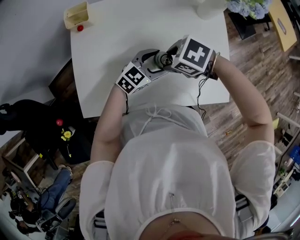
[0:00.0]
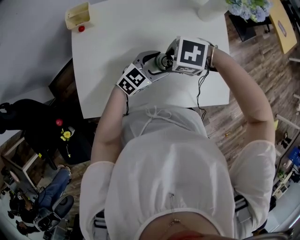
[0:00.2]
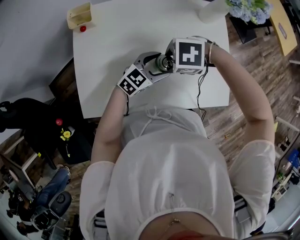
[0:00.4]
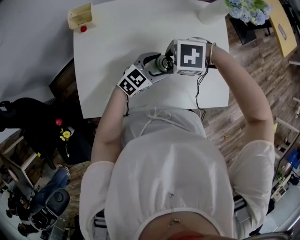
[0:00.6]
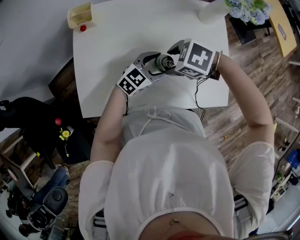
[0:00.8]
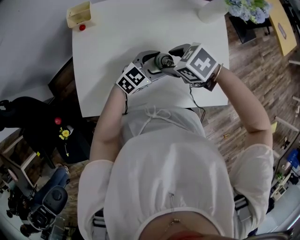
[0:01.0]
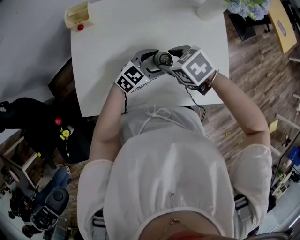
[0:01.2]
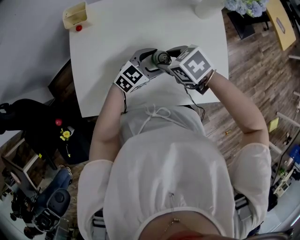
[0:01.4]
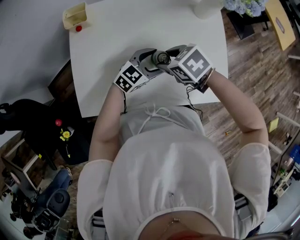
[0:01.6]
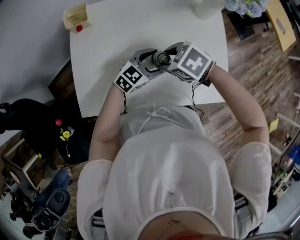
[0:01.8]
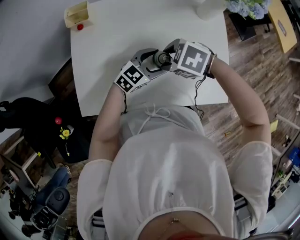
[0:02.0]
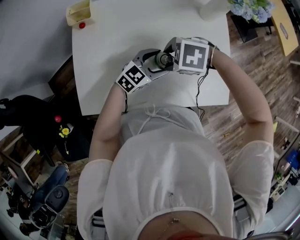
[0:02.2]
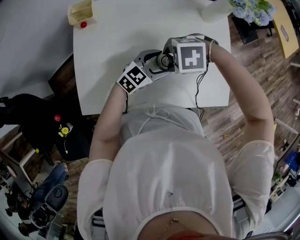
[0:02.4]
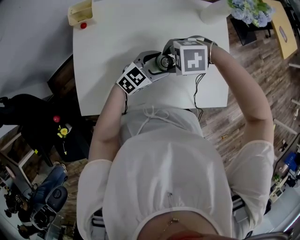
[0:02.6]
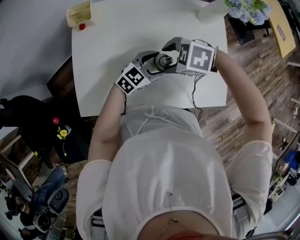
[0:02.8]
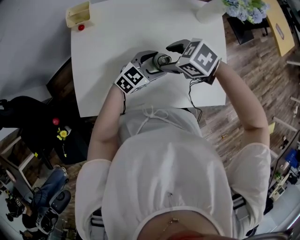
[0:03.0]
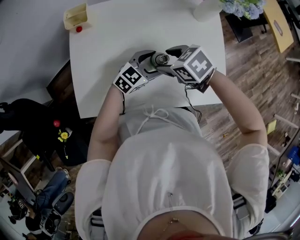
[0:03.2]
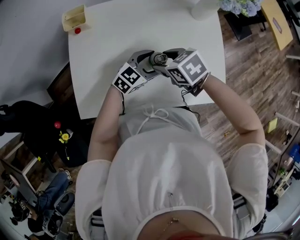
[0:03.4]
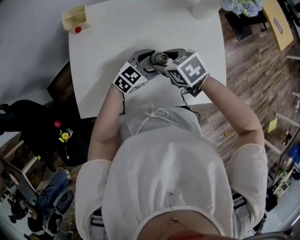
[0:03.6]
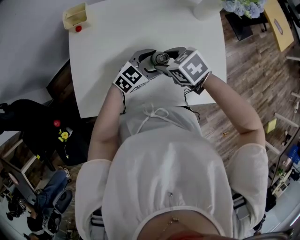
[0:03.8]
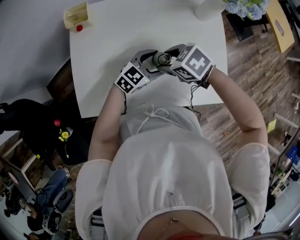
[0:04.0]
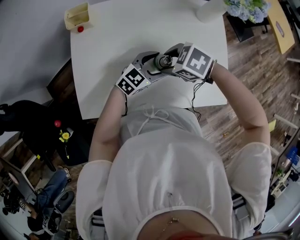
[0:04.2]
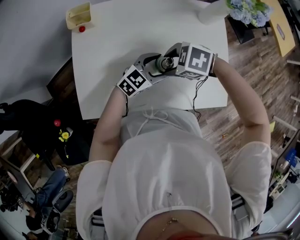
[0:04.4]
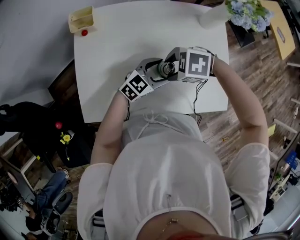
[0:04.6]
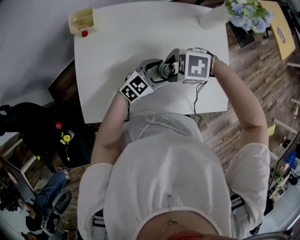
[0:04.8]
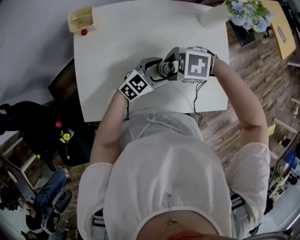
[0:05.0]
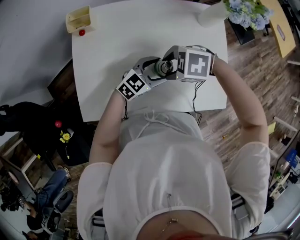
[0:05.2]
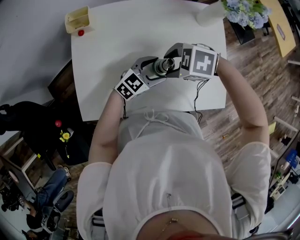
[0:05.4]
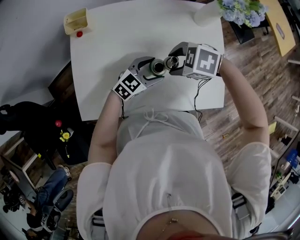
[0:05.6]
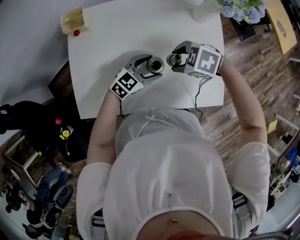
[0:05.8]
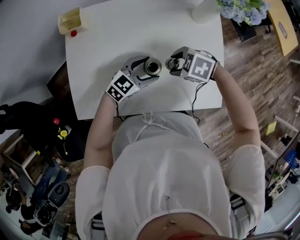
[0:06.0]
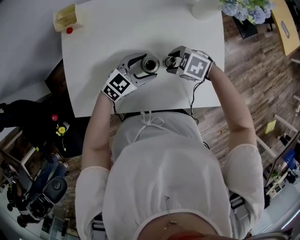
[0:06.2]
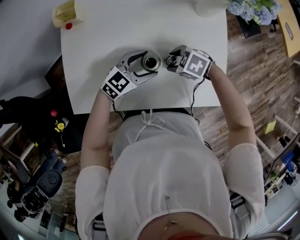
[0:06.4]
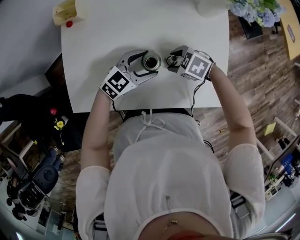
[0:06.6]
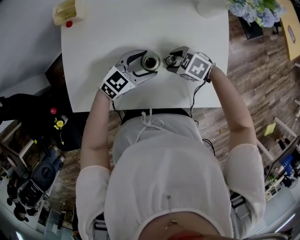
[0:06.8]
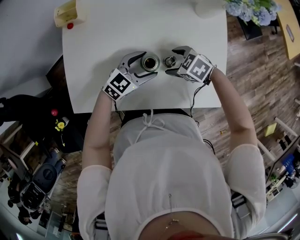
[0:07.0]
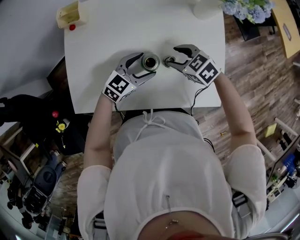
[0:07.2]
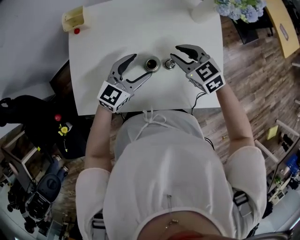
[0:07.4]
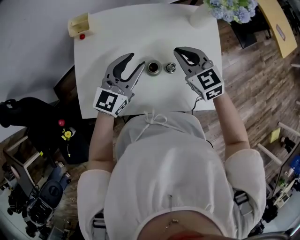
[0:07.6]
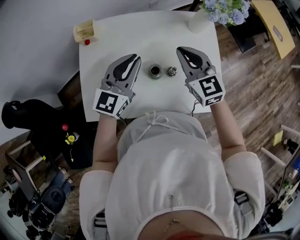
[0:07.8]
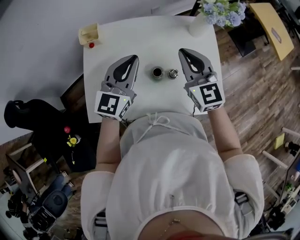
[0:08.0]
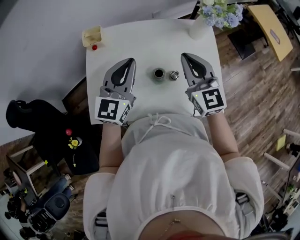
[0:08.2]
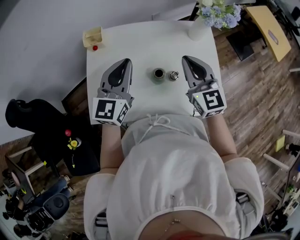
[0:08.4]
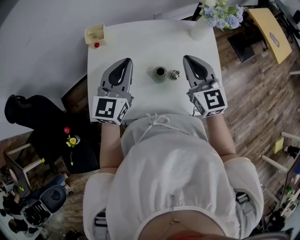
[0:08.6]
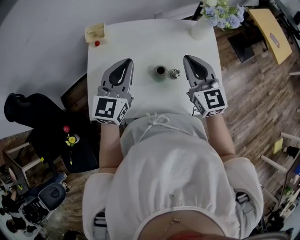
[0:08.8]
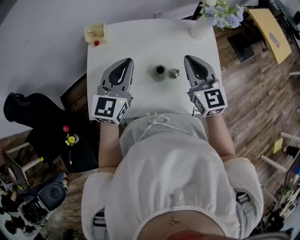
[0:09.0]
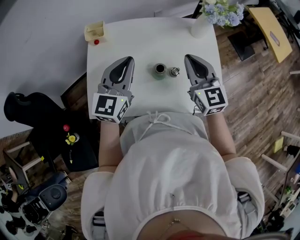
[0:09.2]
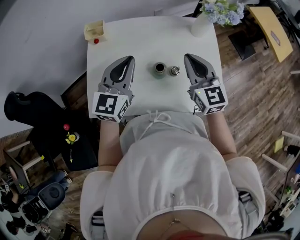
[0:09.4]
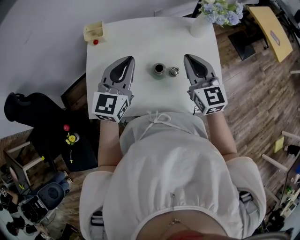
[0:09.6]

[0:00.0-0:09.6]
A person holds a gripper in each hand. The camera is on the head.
0:00.0 to 0:01.6: The right gripper rotates roughly 20 degrees.
0:03.2 to 0:04.8: The right gripper rotates roughly 40 degrees.
0:04.8 to 0:06.4: The right gripper moves downward, some 10 cm.
0:06.4 to 0:08.0: Both grippers travel together upward, roughly 25 cm. The right gripper tips its fingers upward by roughly 60 degrees, and closes, while the left gripper turns by approximately 40 degrees, and closes its fingers.
0:08.0 to 0:09.6: There are only small adjustments of the grippers.

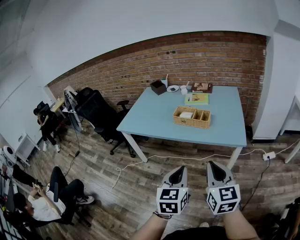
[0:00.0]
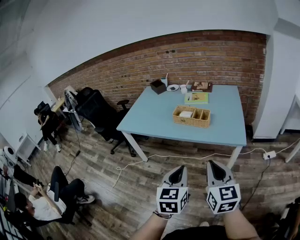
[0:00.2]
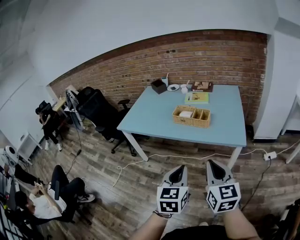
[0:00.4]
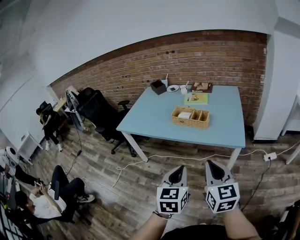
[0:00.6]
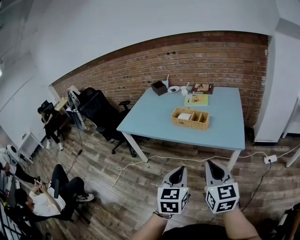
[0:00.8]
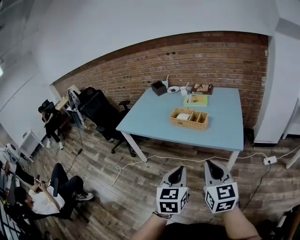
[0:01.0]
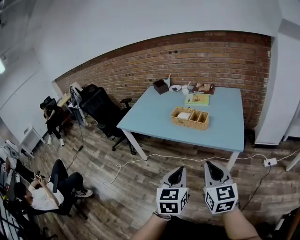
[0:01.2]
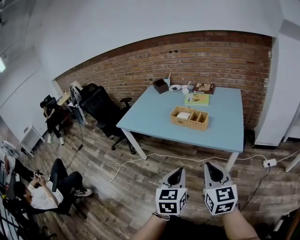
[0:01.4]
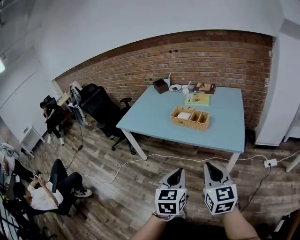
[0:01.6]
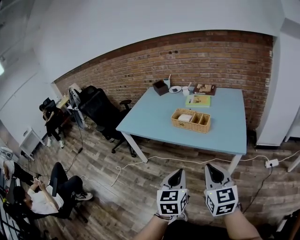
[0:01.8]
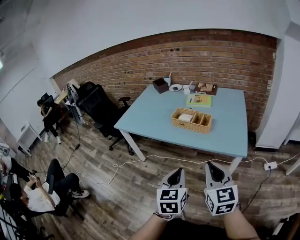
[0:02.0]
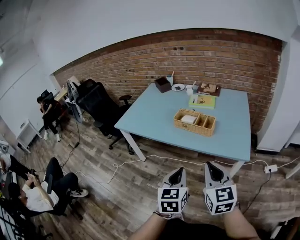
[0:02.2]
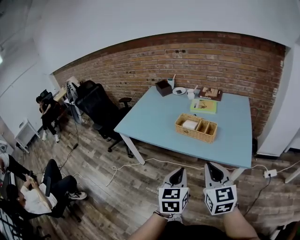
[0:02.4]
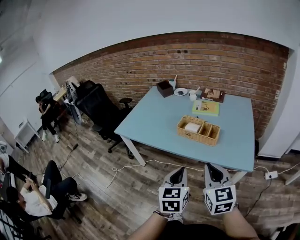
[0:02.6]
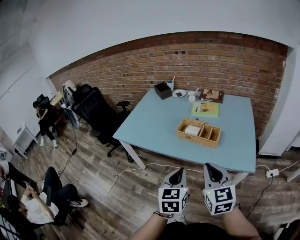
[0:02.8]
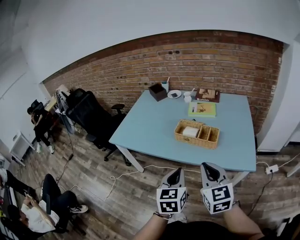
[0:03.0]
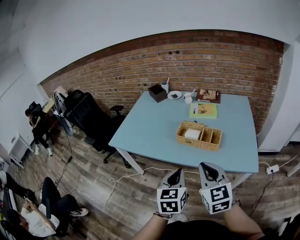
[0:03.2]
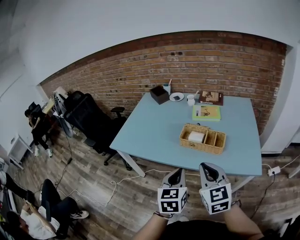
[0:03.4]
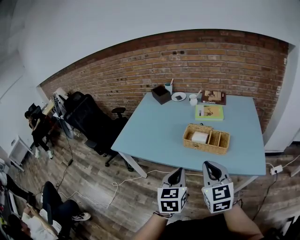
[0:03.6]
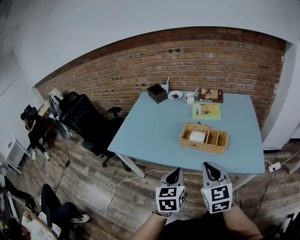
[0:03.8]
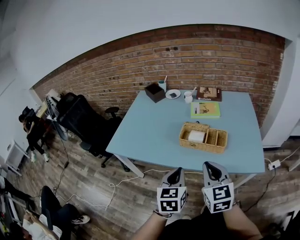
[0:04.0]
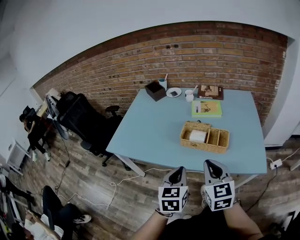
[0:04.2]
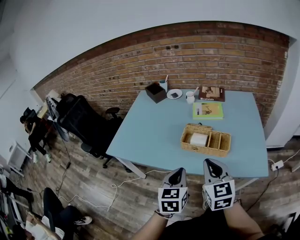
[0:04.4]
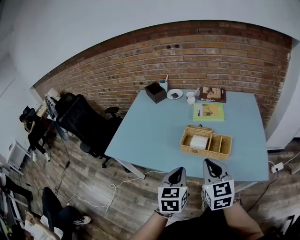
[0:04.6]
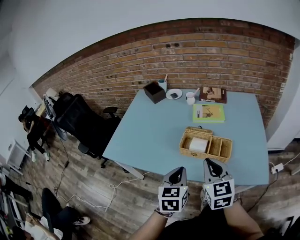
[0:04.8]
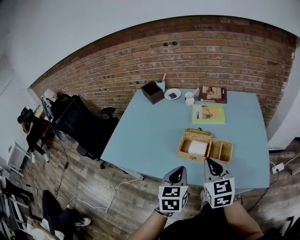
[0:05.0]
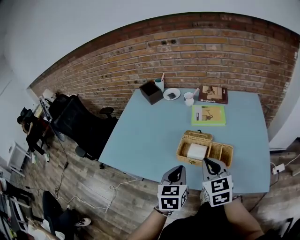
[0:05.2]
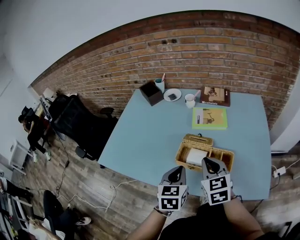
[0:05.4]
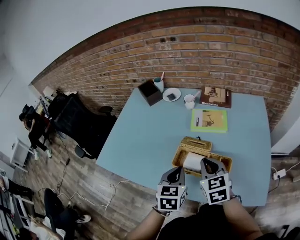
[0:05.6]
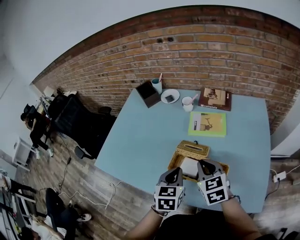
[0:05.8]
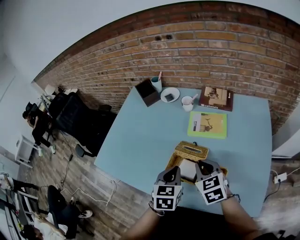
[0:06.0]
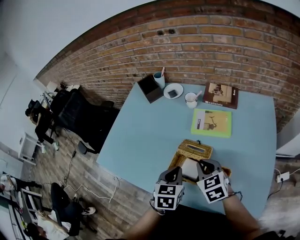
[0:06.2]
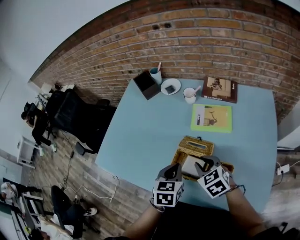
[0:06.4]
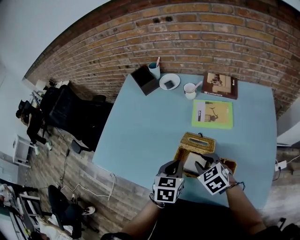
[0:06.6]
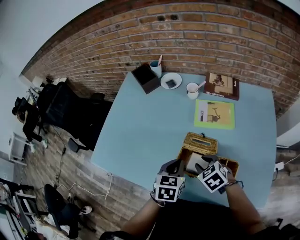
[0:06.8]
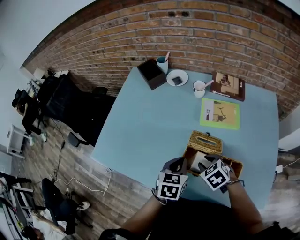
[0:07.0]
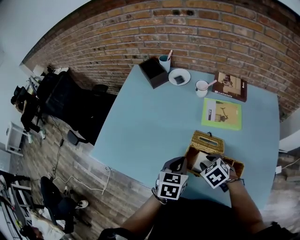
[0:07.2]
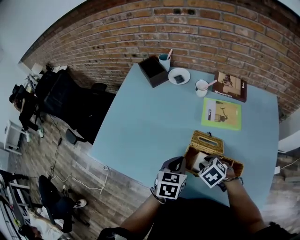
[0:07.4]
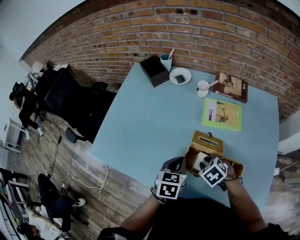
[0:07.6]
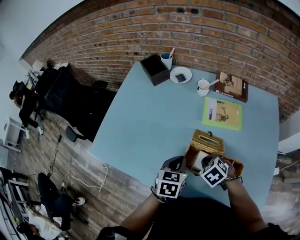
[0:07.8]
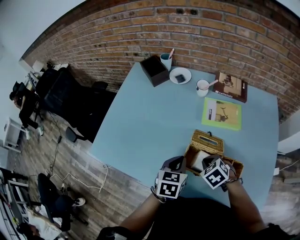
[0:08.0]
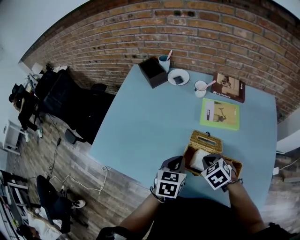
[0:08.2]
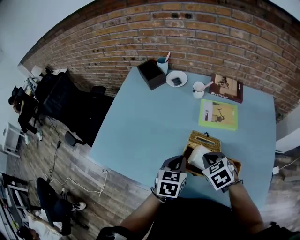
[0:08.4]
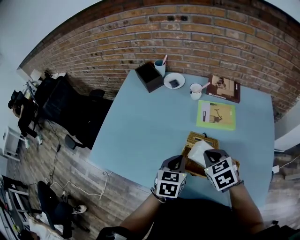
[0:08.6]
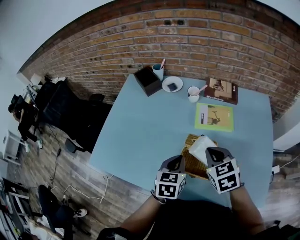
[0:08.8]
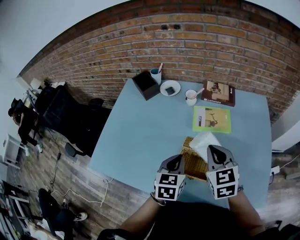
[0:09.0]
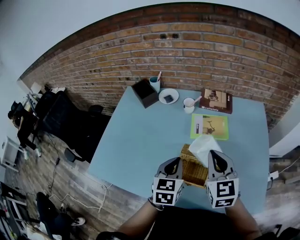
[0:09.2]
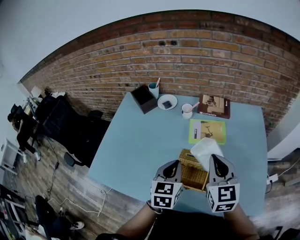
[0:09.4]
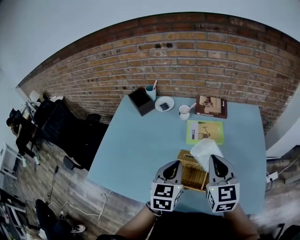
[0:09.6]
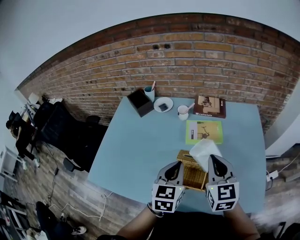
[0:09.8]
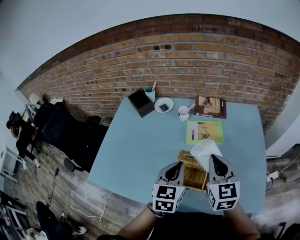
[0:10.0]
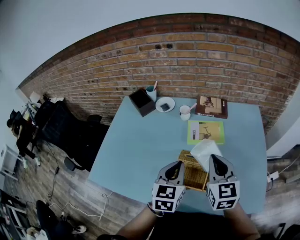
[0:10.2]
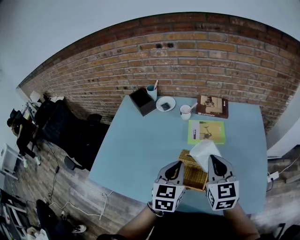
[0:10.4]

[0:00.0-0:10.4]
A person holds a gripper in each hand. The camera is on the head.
0:00.0 to 0:01.4: Both grippers travel together to the right, about 5 cm.
0:01.4 to 0:03.0: The right gripper goes roughly 25 cm forward and to the left; the left gripper is displaced forward by approximately 20 cm.
0:03.0 to 0:04.4: The right gripper shifts about 15 cm forward; the left gripper travels forward and to the left by roughly 15 cm.
0:04.4 to 0:06.0: The grippers both shift forward by roughly 25 cm. The right gripper rotates roughly 20 degrees.
0:06.0 to 0:07.4: The left gripper shifts roughly 10 cm downward, to the left and forward, while the right gripper goes approximately 15 cm downward and to the left, tilts its fingers roughly 40 degrees downward, and opens its fingers.
0:07.4 to 0:09.0: The right gripper is displaced upward by some 20 cm, tilts its fingers about 40 degrees upward, and closes its fingers; the left gripper goes some 5 cm upward.
0:09.0 to 0:10.4: The left gripper is displaced upward by some 5 cm, while the right gripper moves roughly 5 cm.

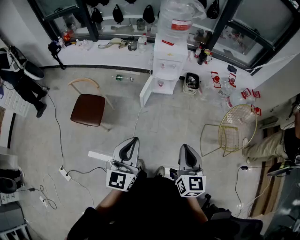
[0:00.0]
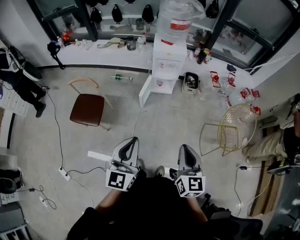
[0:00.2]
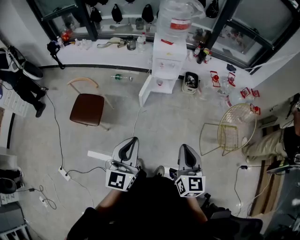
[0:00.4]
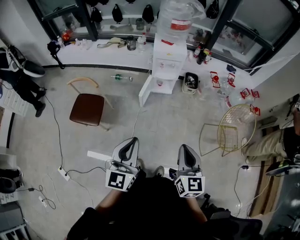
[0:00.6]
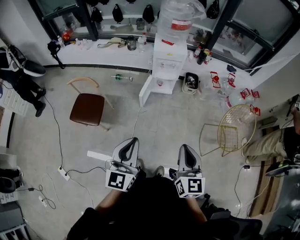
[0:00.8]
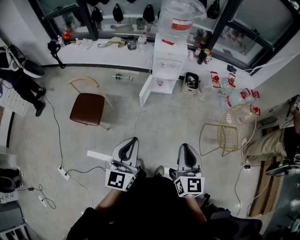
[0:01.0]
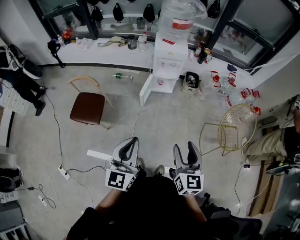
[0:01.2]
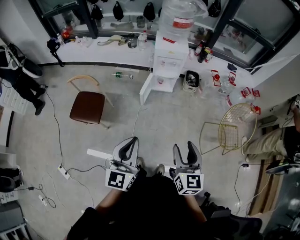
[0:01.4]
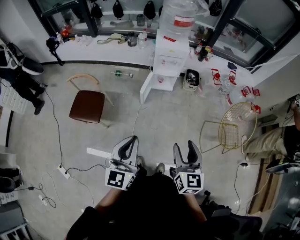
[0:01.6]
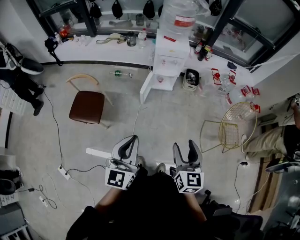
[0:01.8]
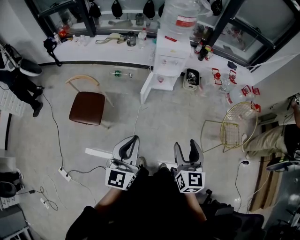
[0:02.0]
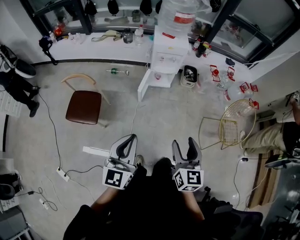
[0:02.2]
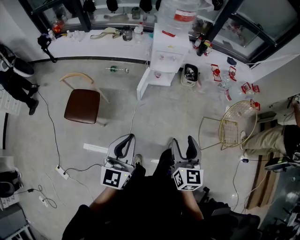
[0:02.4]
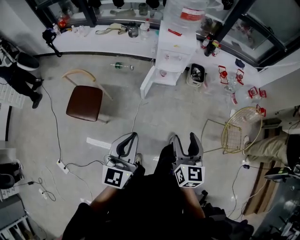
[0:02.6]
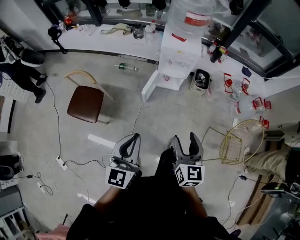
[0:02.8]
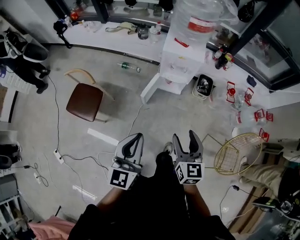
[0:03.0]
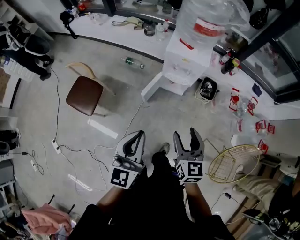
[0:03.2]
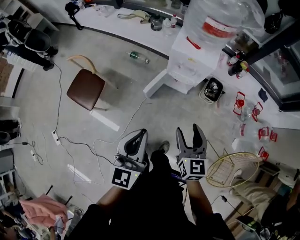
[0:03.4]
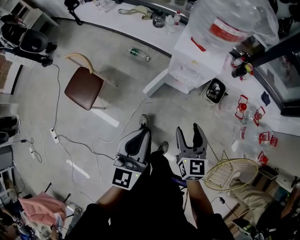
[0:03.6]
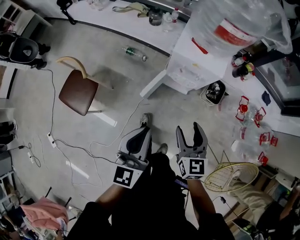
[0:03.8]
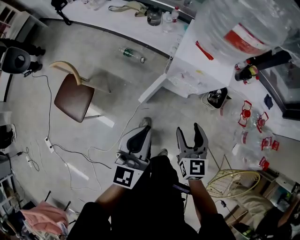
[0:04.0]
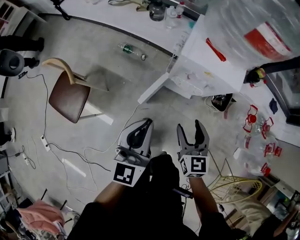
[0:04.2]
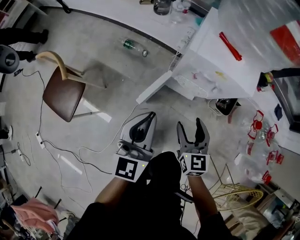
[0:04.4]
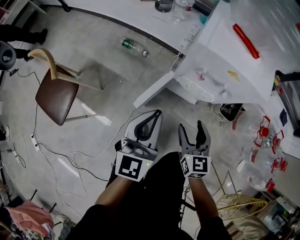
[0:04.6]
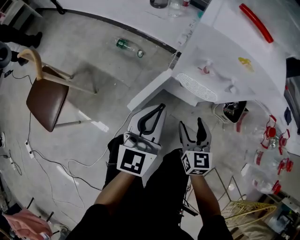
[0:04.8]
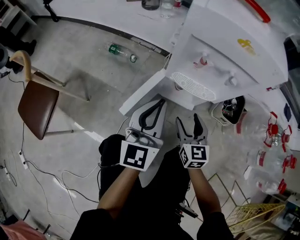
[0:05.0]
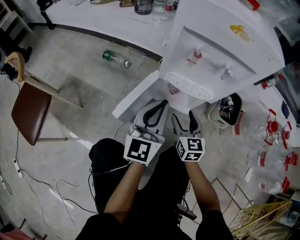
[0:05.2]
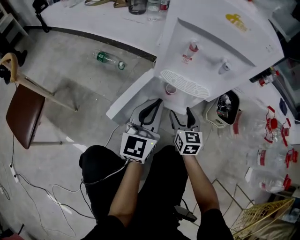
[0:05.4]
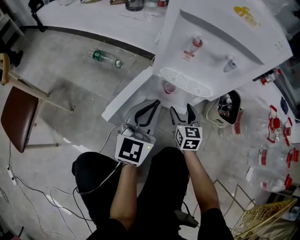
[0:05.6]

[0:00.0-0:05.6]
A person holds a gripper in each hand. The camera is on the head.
0:00.0 to 0:01.4: The right gripper opens its fingers.
0:01.4 to 0:02.8: Both grippers travel together forward, about 20 cm.
0:02.8 to 0:04.2: The two grippers go approximately 40 cm forward and downward. The right gripper swivels roughly 20 degrees.
0:04.2 to 0:05.6: The two grippers go roughly 40 cm downward.
